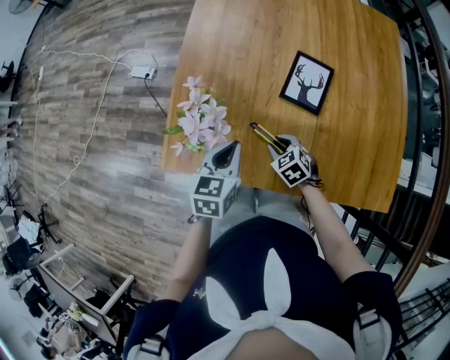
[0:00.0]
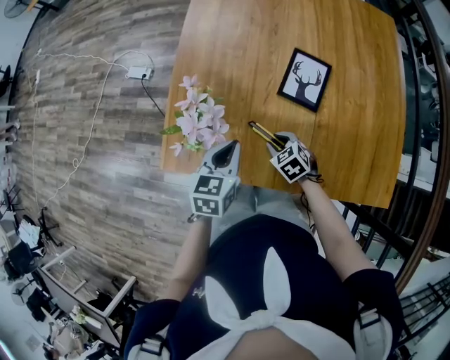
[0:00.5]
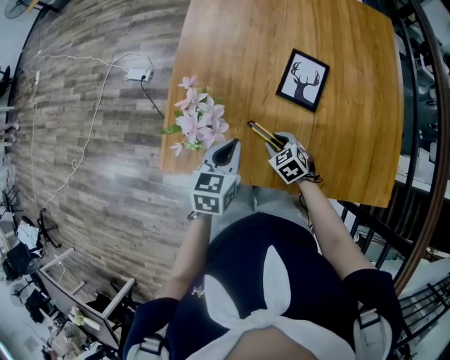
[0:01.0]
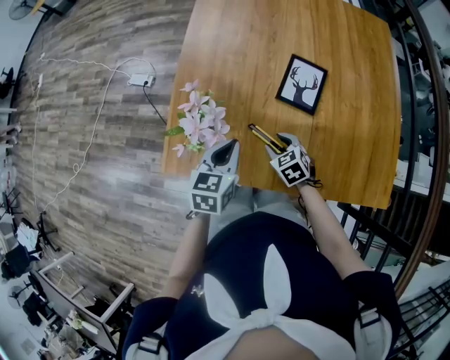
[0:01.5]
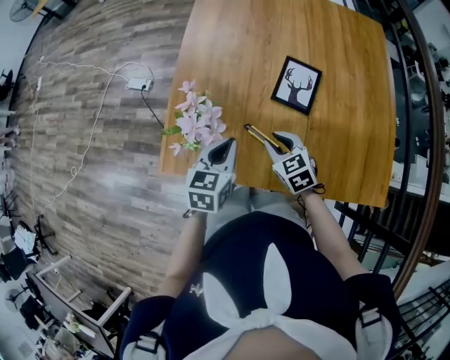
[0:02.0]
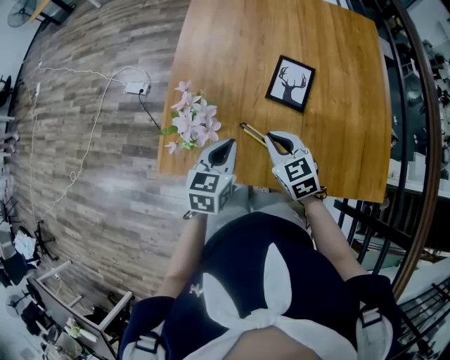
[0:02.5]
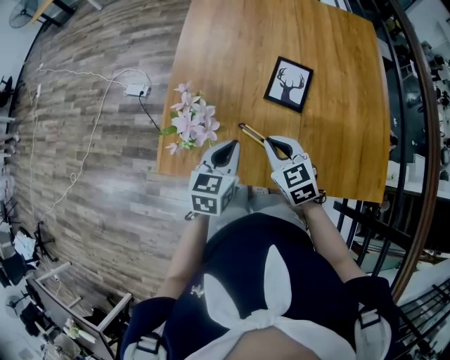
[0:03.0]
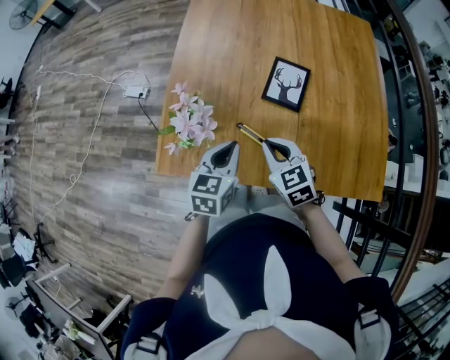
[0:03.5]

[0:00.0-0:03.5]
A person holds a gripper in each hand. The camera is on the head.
0:00.0 to 0:02.0: The right gripper shifts some 10 cm upward.
0:02.0 to 0:03.5: The right gripper goes about 5 cm upward, and closes up.

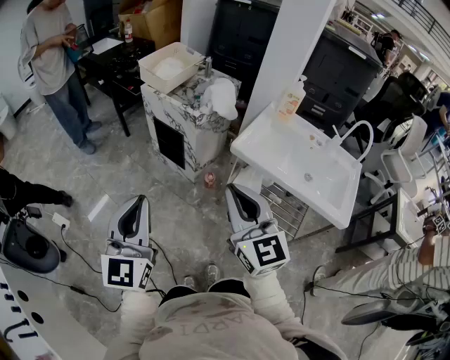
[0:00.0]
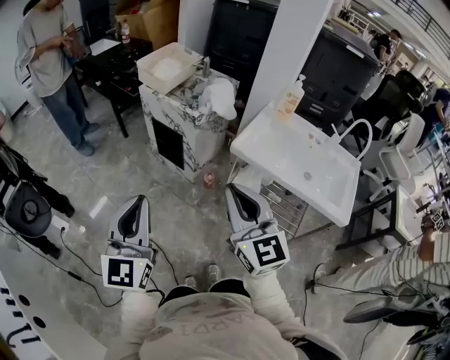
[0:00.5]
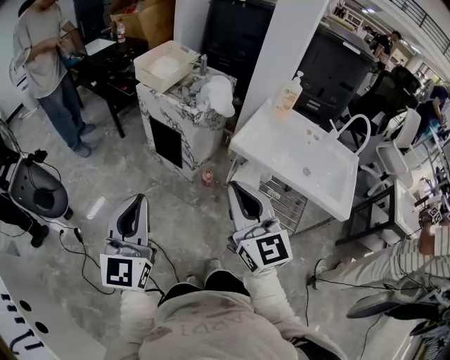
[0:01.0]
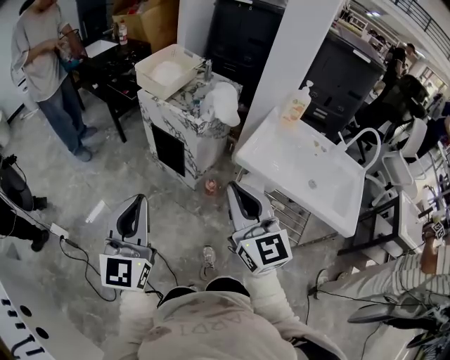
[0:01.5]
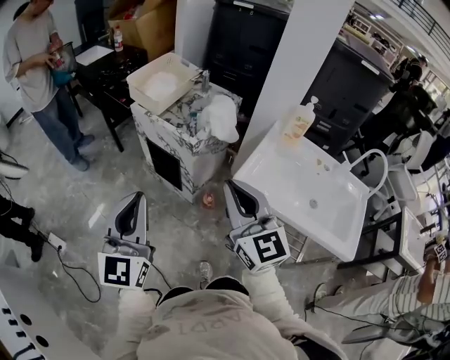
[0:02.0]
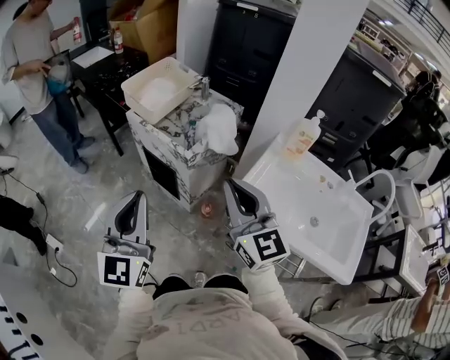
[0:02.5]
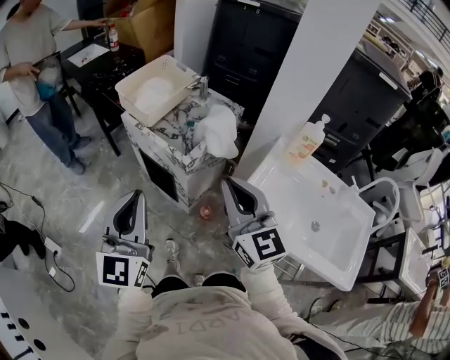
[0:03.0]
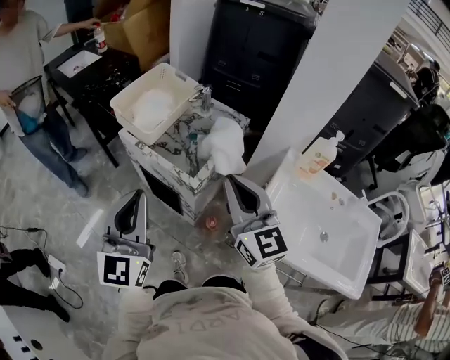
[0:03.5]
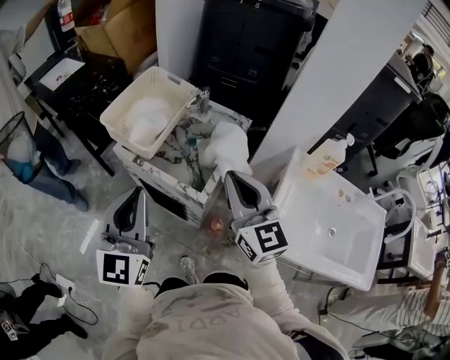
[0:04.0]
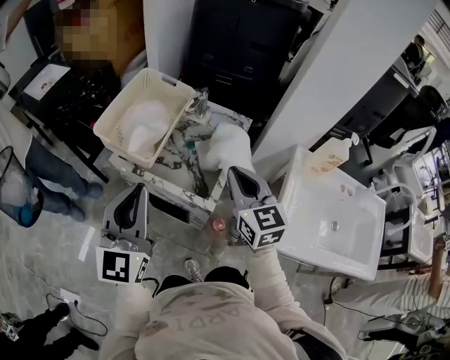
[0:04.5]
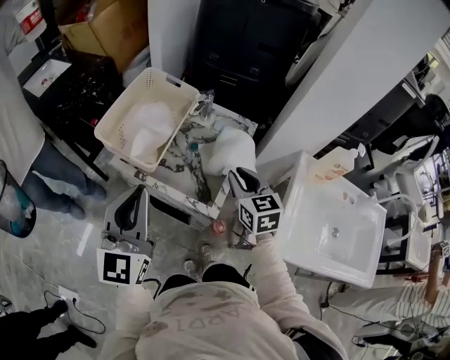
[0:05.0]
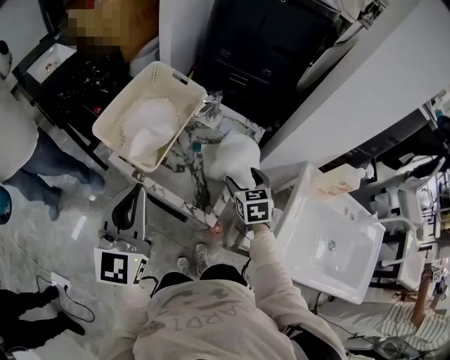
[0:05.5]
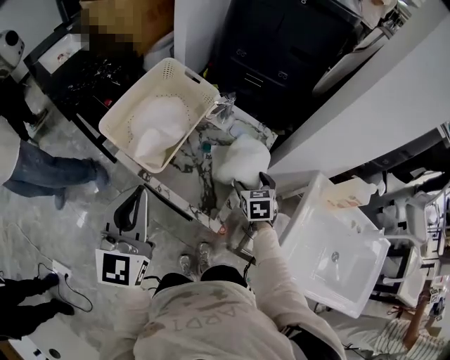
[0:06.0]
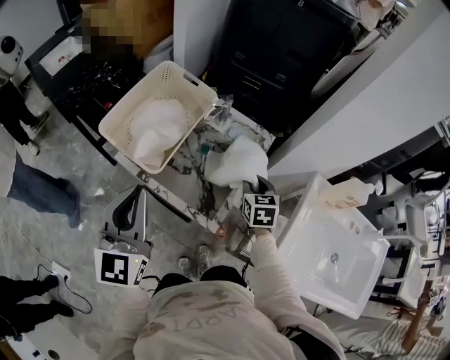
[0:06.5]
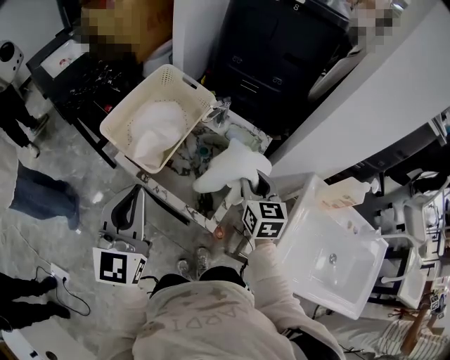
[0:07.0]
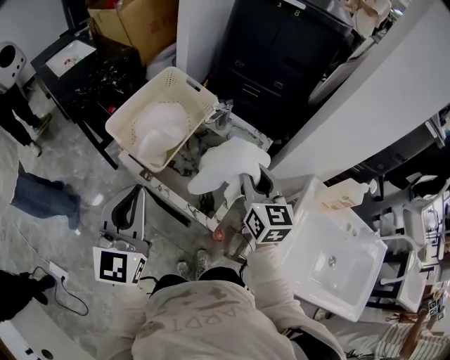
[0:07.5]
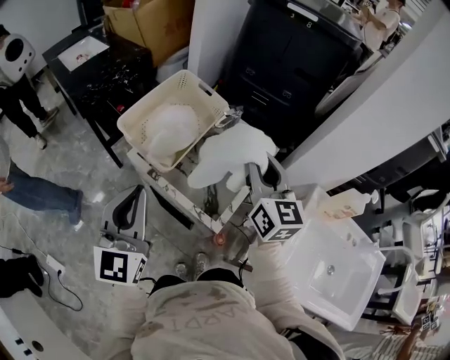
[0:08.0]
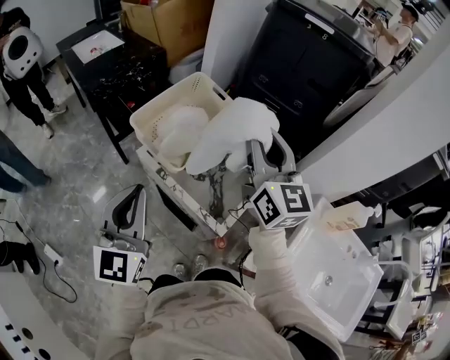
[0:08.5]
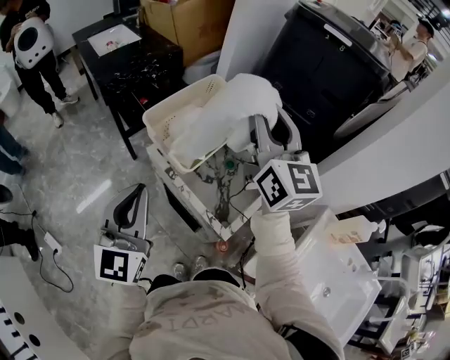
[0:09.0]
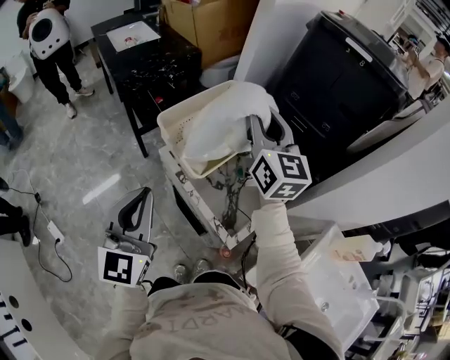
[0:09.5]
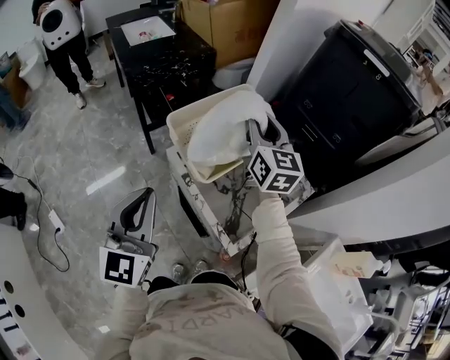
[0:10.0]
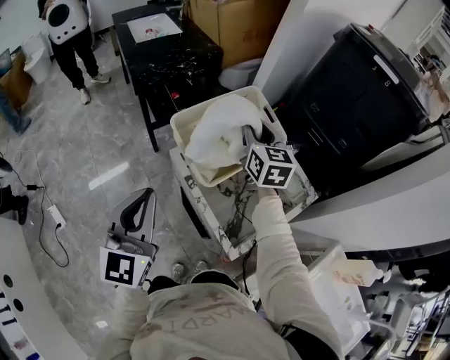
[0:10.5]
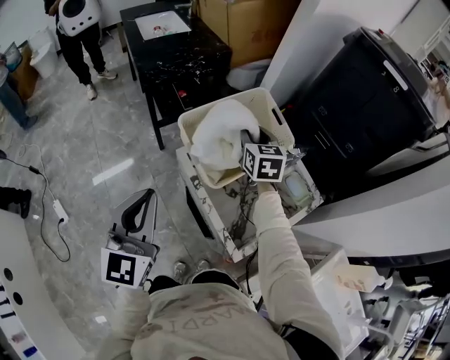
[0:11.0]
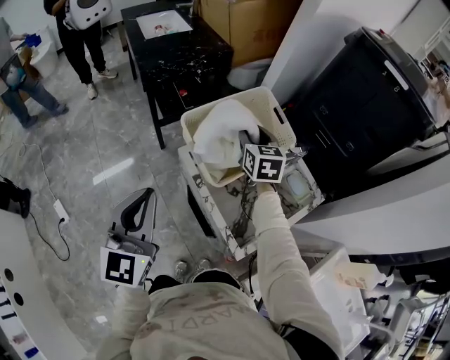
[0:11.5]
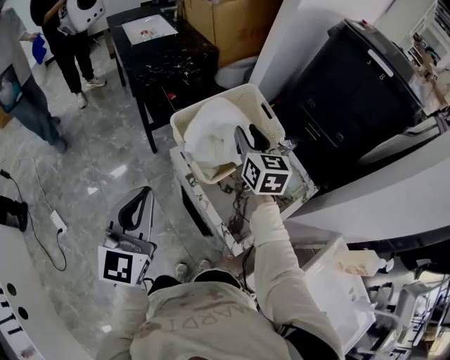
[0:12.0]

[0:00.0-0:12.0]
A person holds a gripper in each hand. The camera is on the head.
0:00.0 to 0:02.0: The grippers both shift forward by about 20 cm.
0:02.0 to 0:04.0: Both grippers travel together forward, approximately 35 cm.
0:04.0 to 0:06.0: The left gripper moves forward, approximately 15 cm. The right gripper travels downward and forward by roughly 35 cm, tips its fingers downward by some 40 degrees, and opens its fingers.
0:06.0 to 0:08.0: The right gripper is displaced upward by roughly 30 cm, tilts its fingers some 40 degrees upward, and closes its fingers. Meanwhile the left gripper moves some 5 cm.
0:08.0 to 0:10.0: The left gripper moves to the left, about 5 cm, while the right gripper goes some 25 cm forward and to the left.
0:10.0 to 0:12.0: The right gripper heads downward, covering roughly 5 cm.

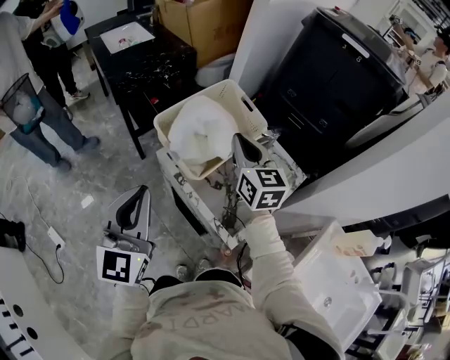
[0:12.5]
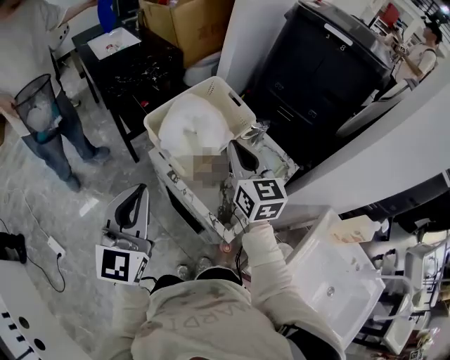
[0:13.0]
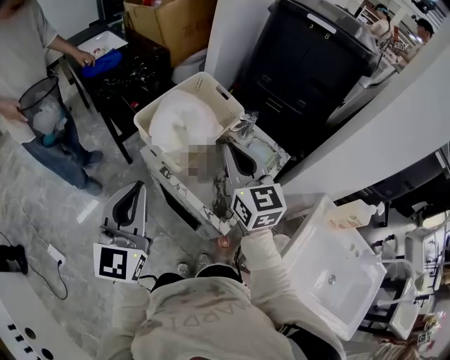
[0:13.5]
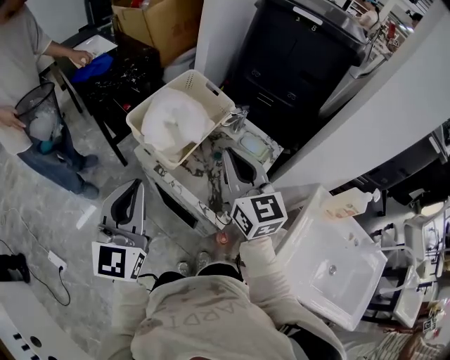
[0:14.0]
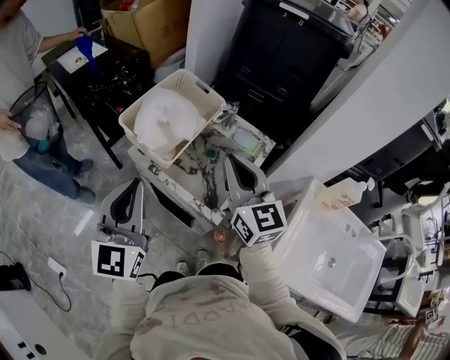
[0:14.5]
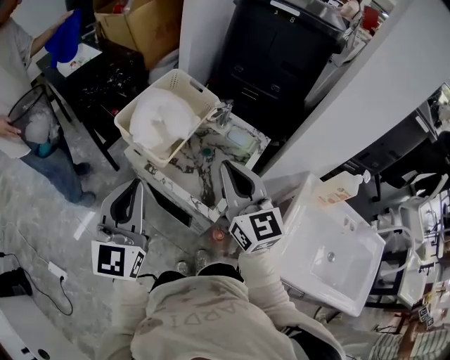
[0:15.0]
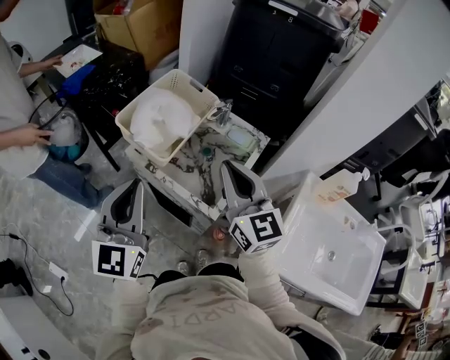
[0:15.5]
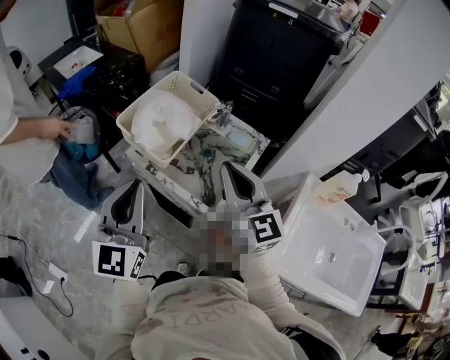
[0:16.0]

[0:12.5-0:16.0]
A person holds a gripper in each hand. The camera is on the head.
0:12.5 to 0:14.5: The right gripper goes some 15 cm backward. The left gripper goes some 5 cm to the right.
0:14.5 to 0:16.0: The grippers move only a little.

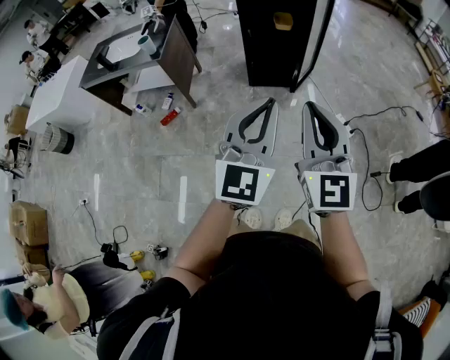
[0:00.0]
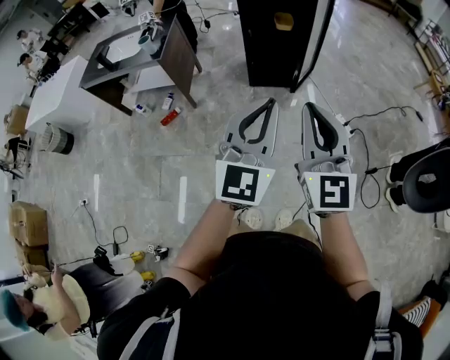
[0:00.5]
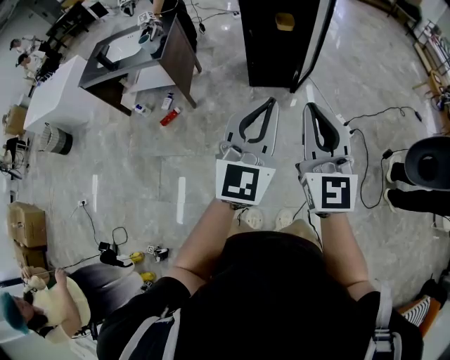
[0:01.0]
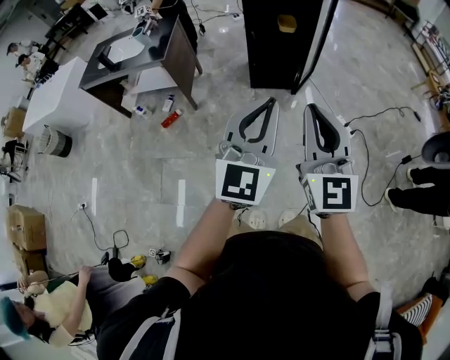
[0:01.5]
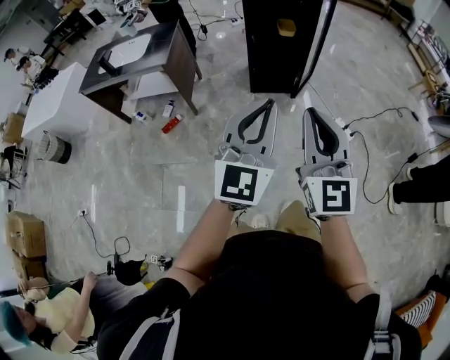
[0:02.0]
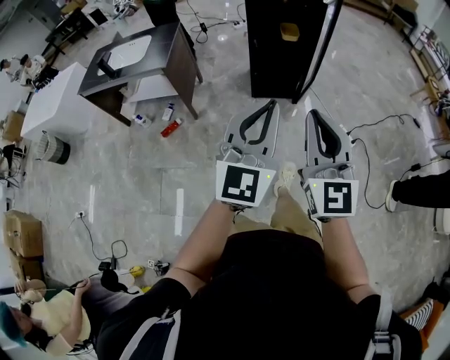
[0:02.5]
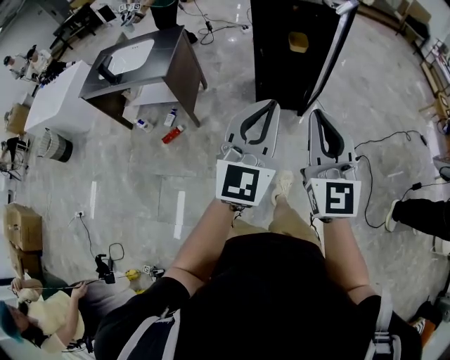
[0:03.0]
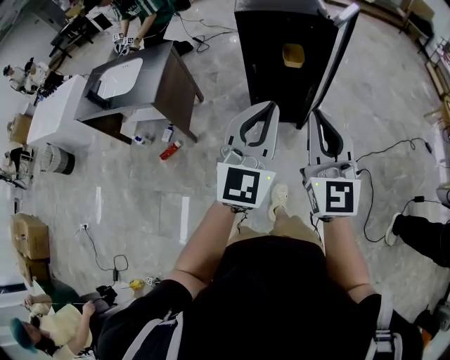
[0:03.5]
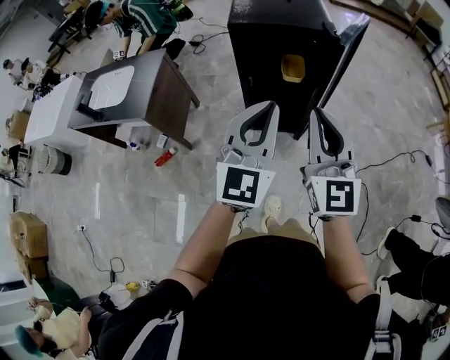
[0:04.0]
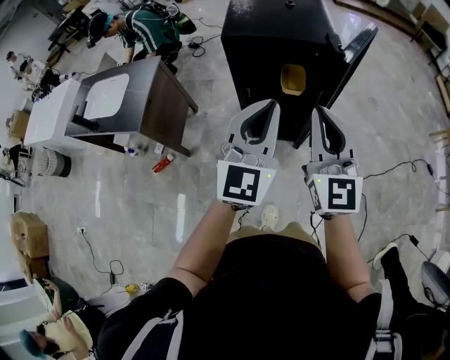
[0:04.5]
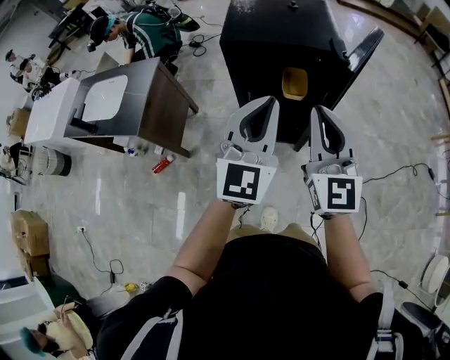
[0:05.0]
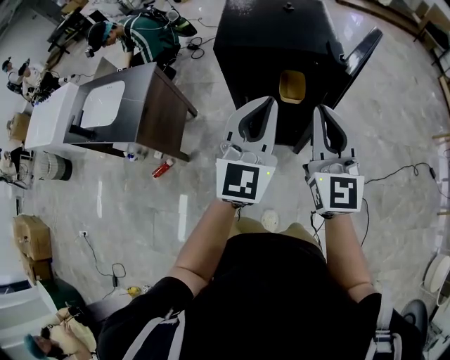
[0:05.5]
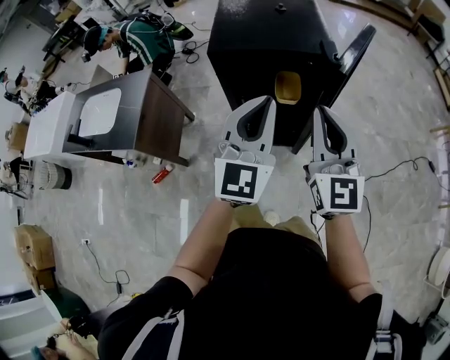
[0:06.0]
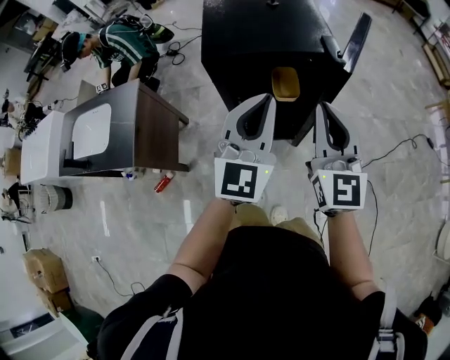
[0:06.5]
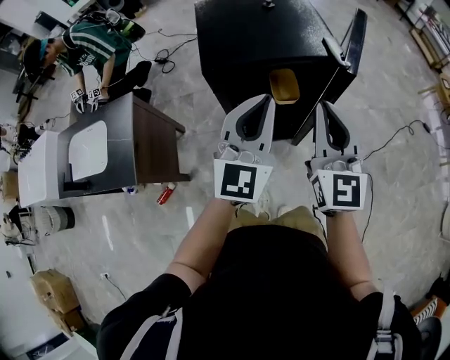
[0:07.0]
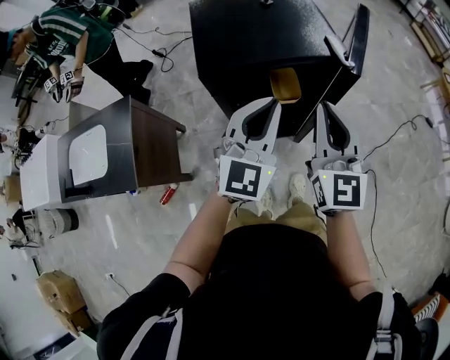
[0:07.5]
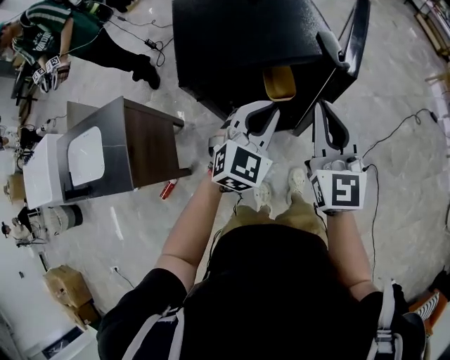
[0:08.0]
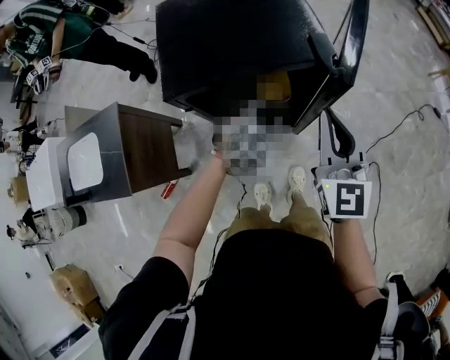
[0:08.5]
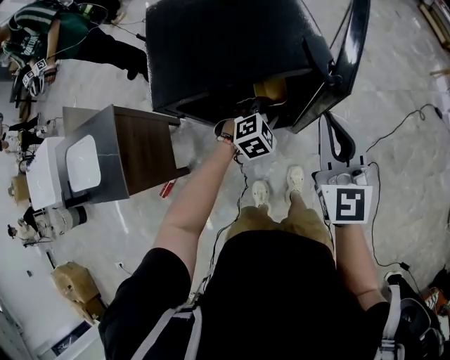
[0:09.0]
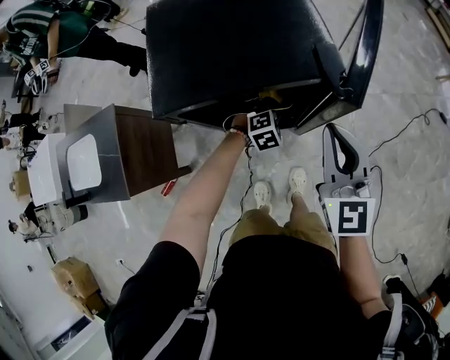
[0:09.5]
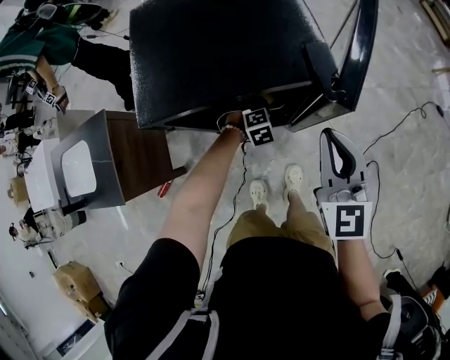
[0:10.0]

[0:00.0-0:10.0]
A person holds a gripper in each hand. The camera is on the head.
0:00.0 to 0:02.0: Both grippers travel together to the left, about 10 cm.
0:02.0 to 0:04.0: The pair of grippers is taken forward, roughly 50 cm.
0:04.0 to 0:06.0: Both grippers travel together forward, some 20 cm.
0:06.0 to 0:08.0: Both grippers travel together forward and downward, some 20 cm. The left gripper tips its fingers downward by roughly 30 degrees.
0:08.0 to 0:10.0: The right gripper shifts about 15 cm forward, downward and to the right. Meanwhile the left gripper is displaced downward and forward by roughly 35 cm, and tips its fingers downward by approximately 50 degrees.
